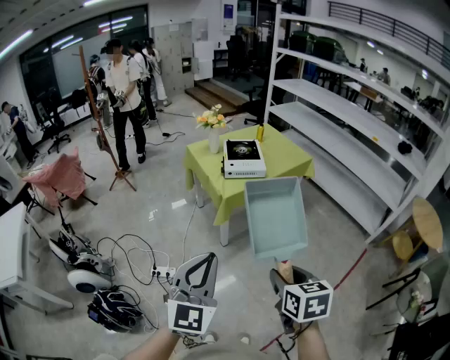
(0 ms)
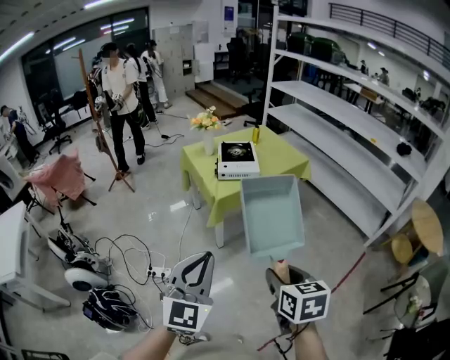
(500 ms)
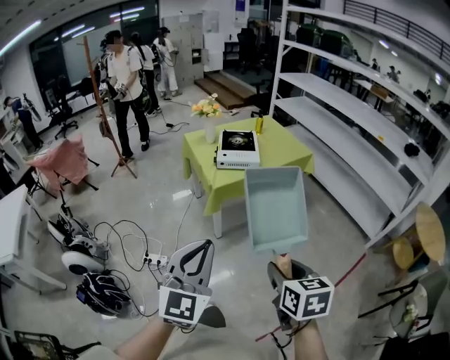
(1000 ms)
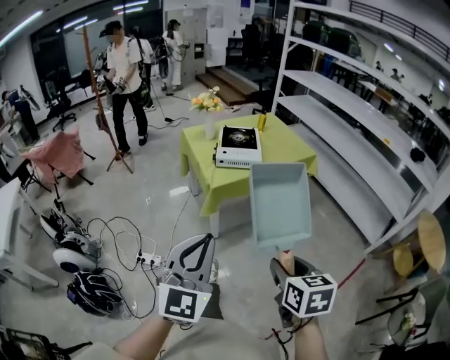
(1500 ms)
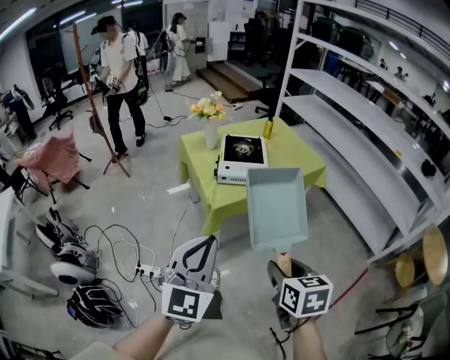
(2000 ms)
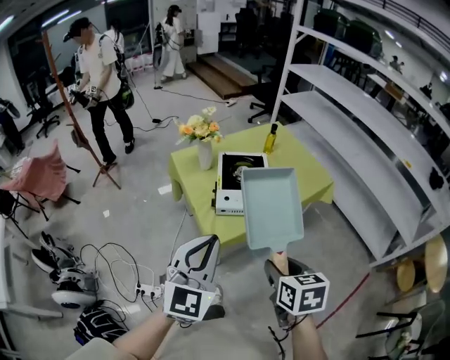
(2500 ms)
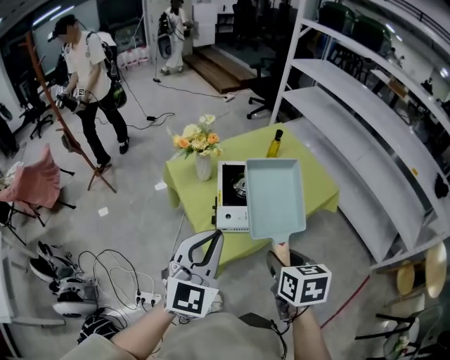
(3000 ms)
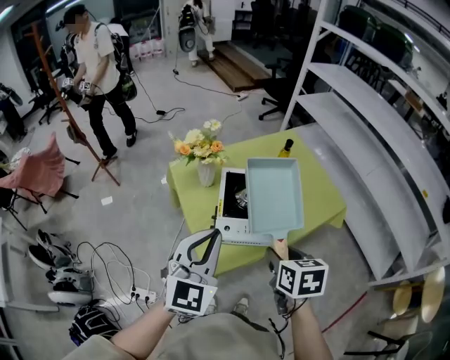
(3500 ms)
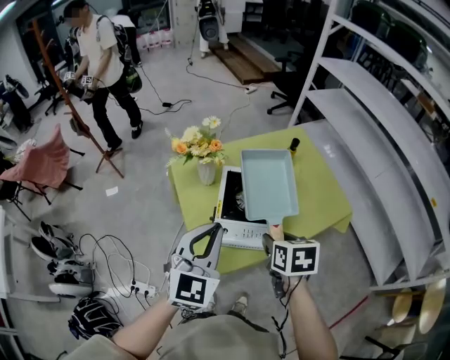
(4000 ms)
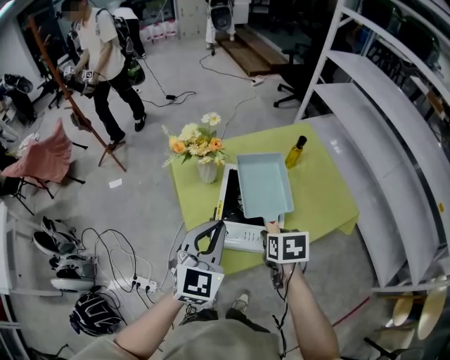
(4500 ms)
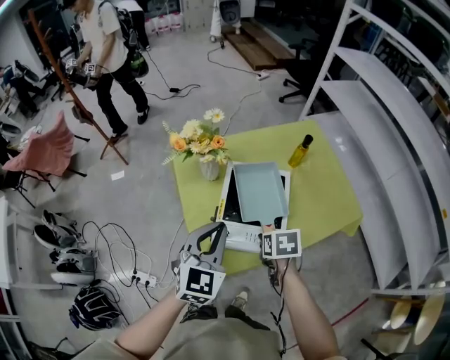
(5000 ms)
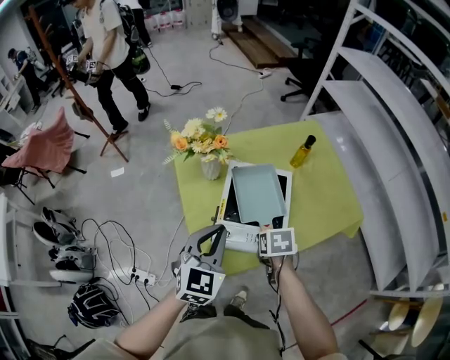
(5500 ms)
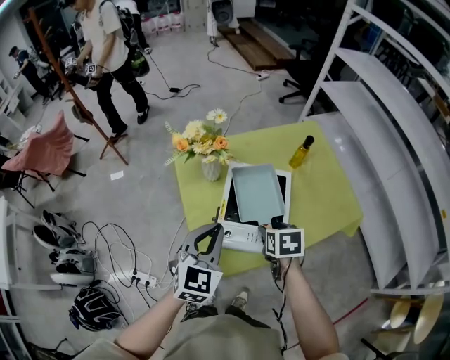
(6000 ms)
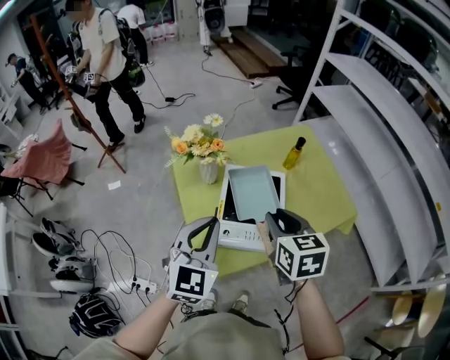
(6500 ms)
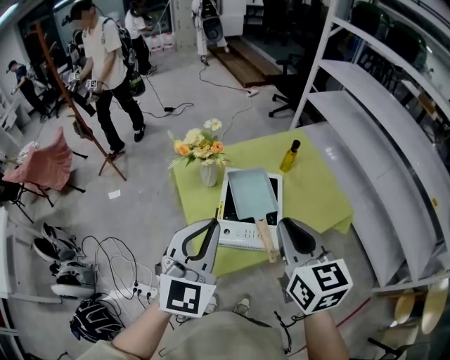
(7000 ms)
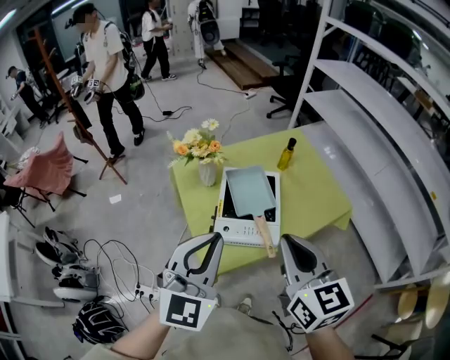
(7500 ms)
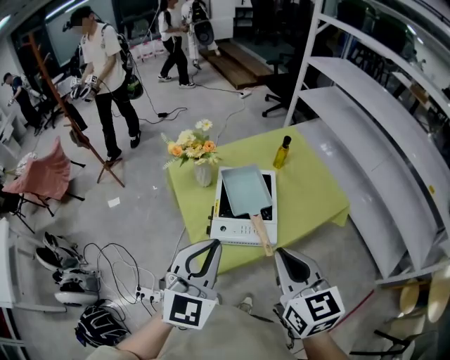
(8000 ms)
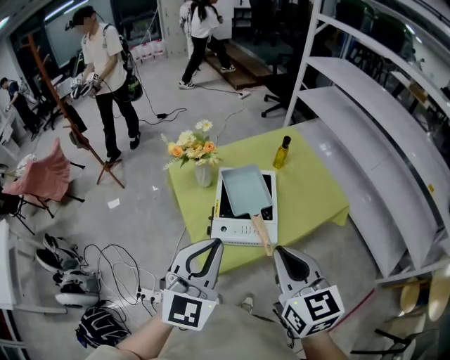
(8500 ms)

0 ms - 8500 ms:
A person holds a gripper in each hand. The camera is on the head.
0 ms - 2000 ms: Both grippers travel together forward, roughly 20 cm.
2000 ms - 4000 ms: The pair of grippers is taken forward, some 50 cm.
4000 ms - 6500 ms: The left gripper moves about 10 cm downward and comes back. Meanwhile the right gripper travels forward by some 5 cm, goes downward and returns, some 15 cm each way, rotates some 20 degrees, and opens, then closes again.
6500 ms - 8500 ms: The two grippers go roughly 15 cm backward and upward. The right gripper closes its fingers.

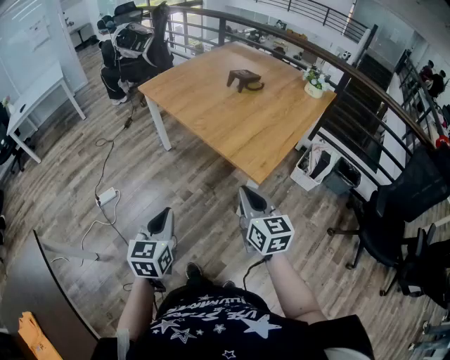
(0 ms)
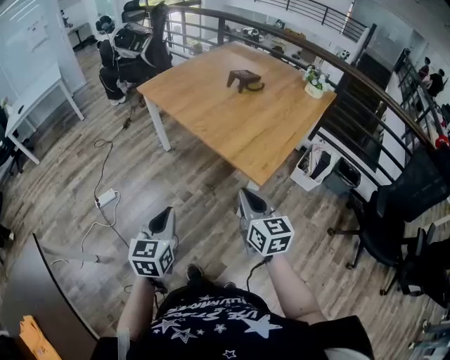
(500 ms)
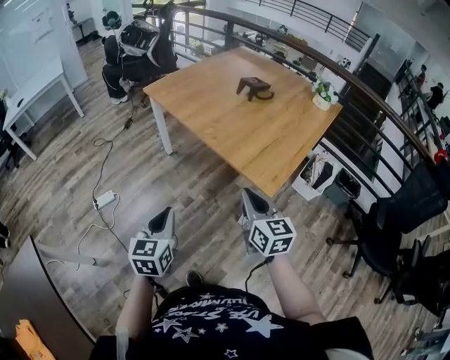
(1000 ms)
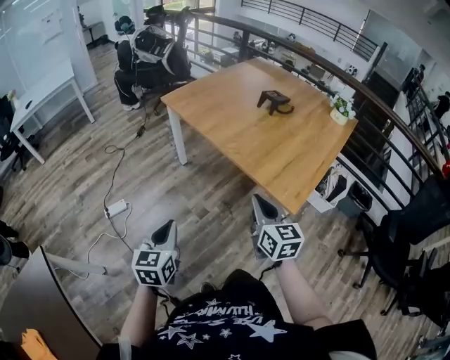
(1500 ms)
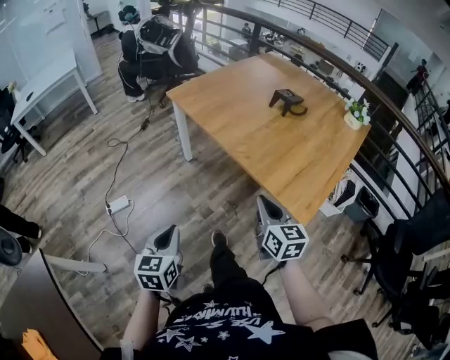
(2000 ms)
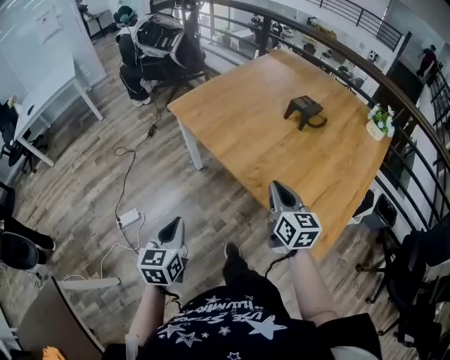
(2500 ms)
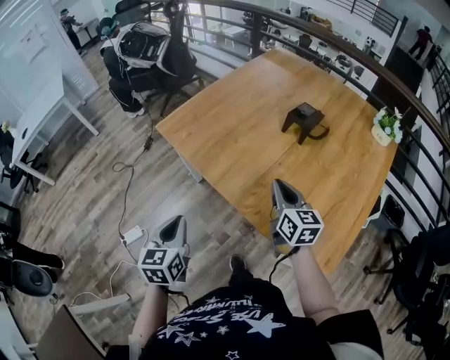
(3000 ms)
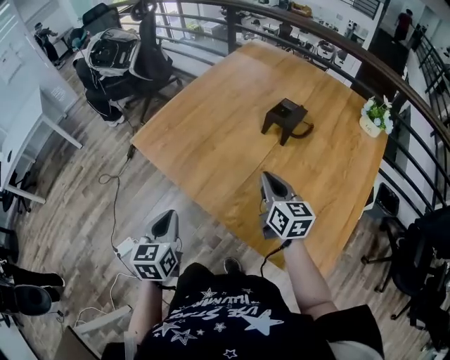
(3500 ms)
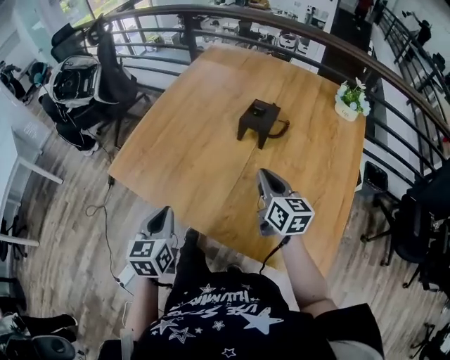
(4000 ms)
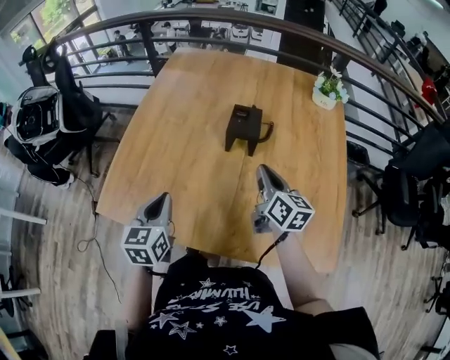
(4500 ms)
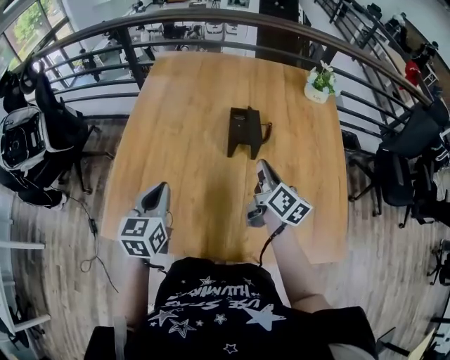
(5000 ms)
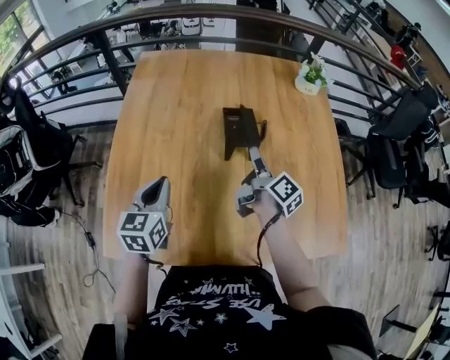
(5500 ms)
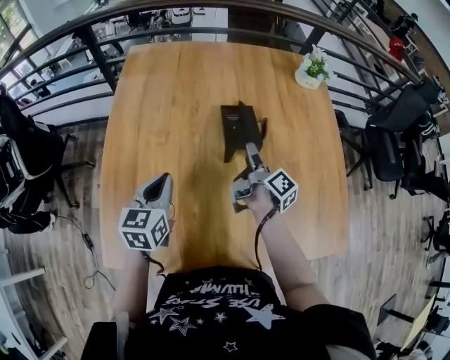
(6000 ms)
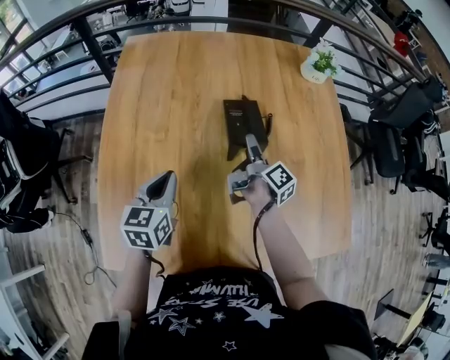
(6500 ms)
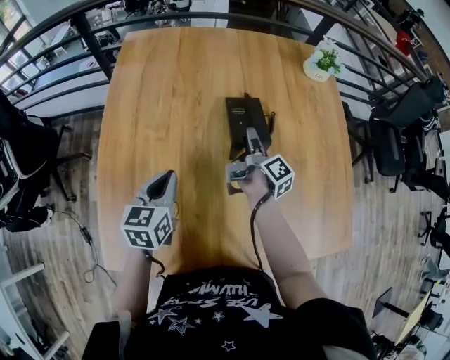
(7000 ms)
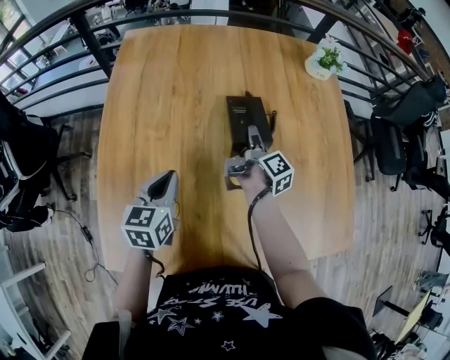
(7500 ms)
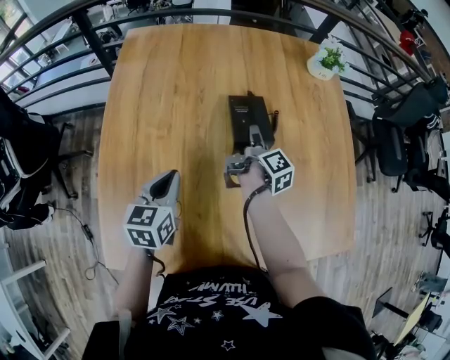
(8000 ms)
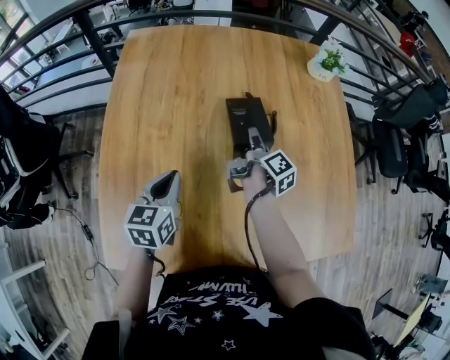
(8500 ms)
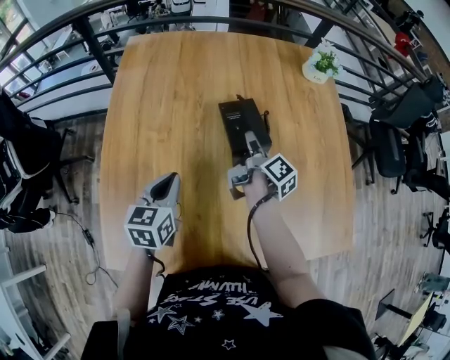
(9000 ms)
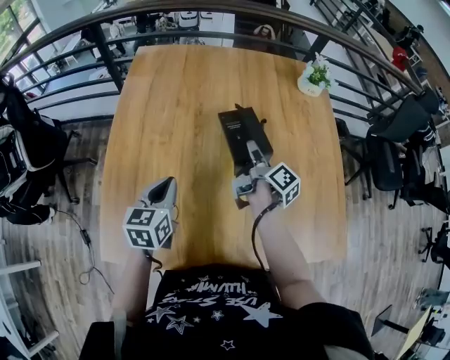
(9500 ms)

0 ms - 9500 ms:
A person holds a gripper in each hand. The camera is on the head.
0 ms - 2000 ms: The left gripper heads to the left and forward, covering approximately 20 cm, while the right gripper goes about 20 cm forward and to the left.
2000 ms - 4000 ms: The two grippers travel together, forward, approximately 50 cm. The right gripper rotates approximately 20 degrees.
4000 ms - 5500 ms: The left gripper moves approximately 25 cm, and rotates approximately 30 degrees. Meanwhile the right gripper shifts by roughly 10 cm, changes its angle by about 60 degrees, and opens up.
5500 ms - 7500 ms: The left gripper shifts about 10 cm forward and downward, while the right gripper is displaced downward and forward by approximately 15 cm, and rotates roughly 20 degrees.
7500 ms - 9500 ms: The left gripper shifts by roughly 5 cm. Meanwhile the right gripper travels upward by approximately 5 cm.

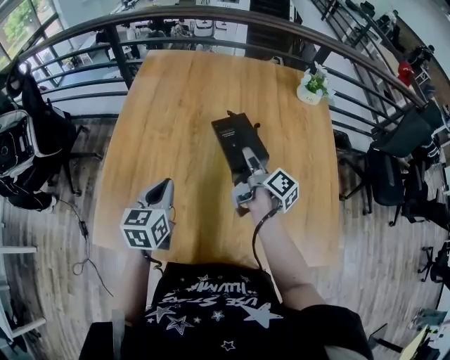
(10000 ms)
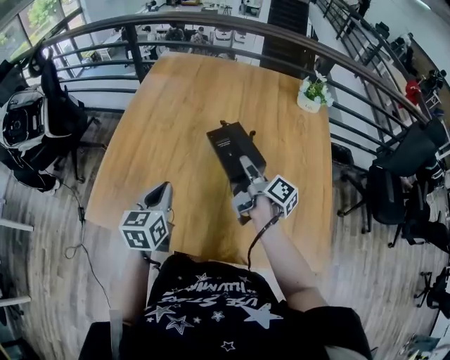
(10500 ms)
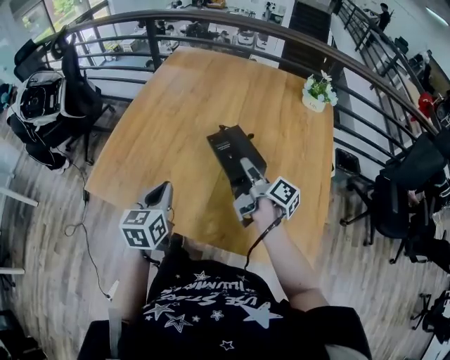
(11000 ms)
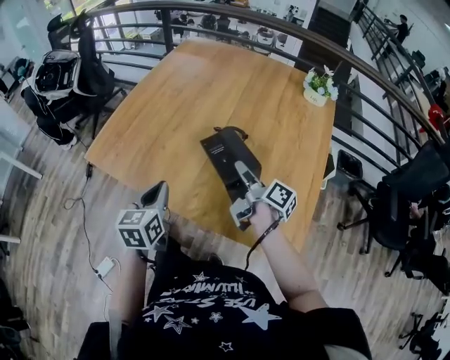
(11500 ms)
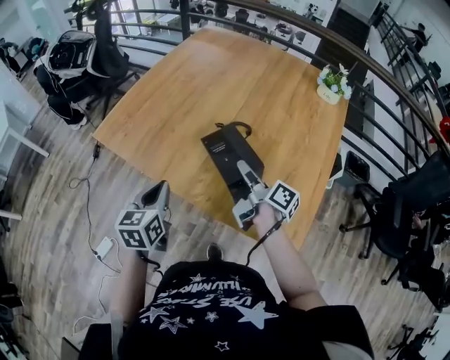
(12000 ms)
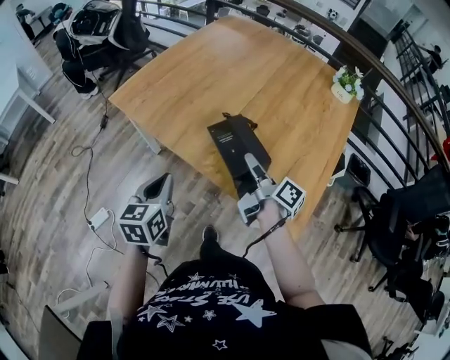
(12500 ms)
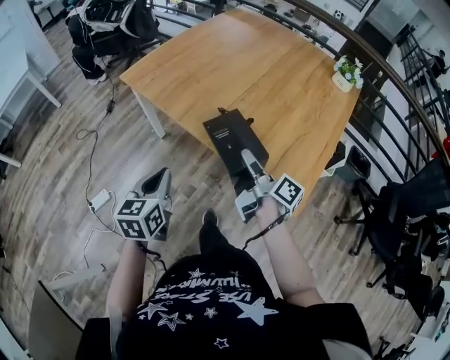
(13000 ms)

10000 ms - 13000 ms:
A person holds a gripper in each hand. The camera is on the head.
10000 ms - 11500 ms: The right gripper moves about 20 cm, and rotates some 30 degrees. Meanwhile the left gripper moves approximately 25 cm, and turns by some 20 degrees.
11500 ms - 13000 ms: Both grippers travel together backward, roughly 20 cm.

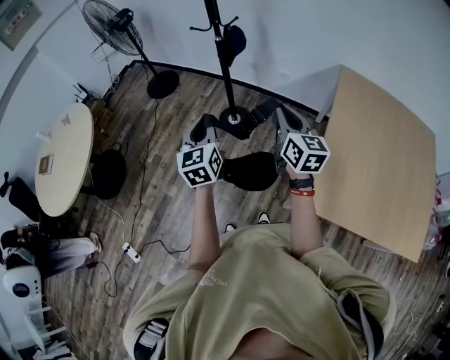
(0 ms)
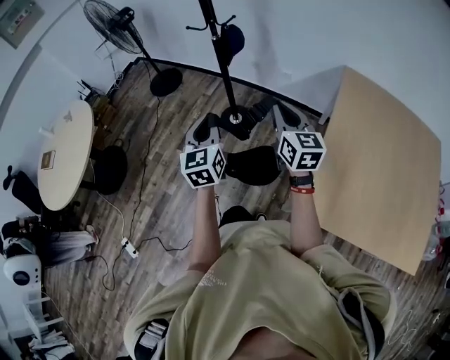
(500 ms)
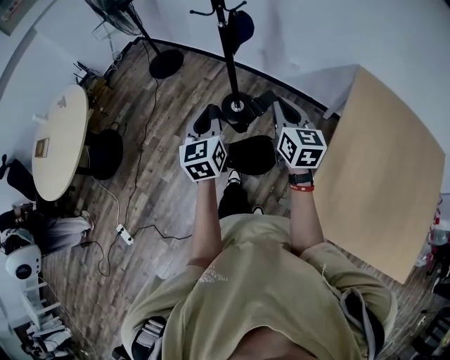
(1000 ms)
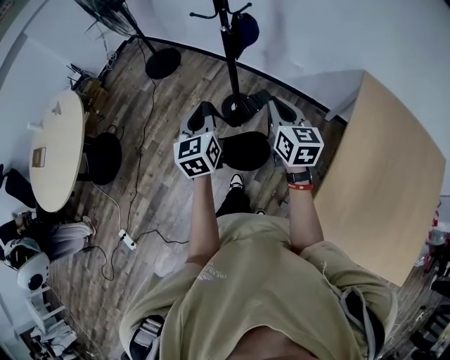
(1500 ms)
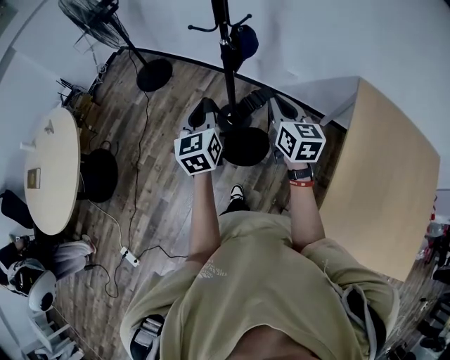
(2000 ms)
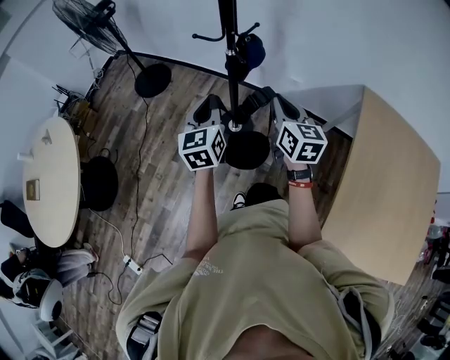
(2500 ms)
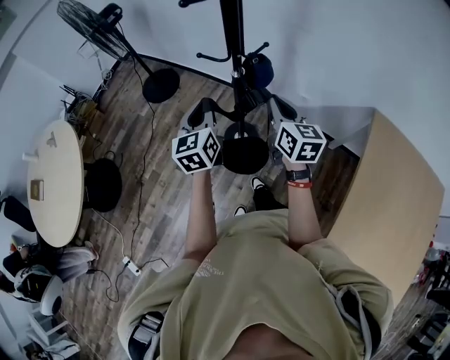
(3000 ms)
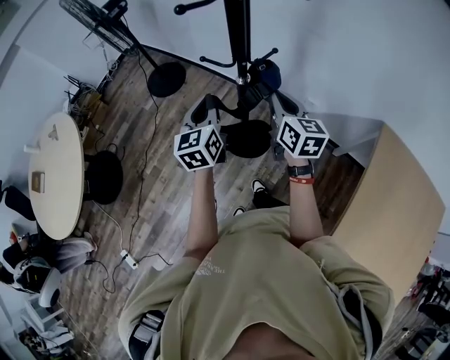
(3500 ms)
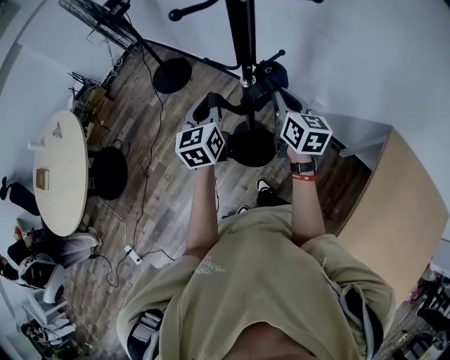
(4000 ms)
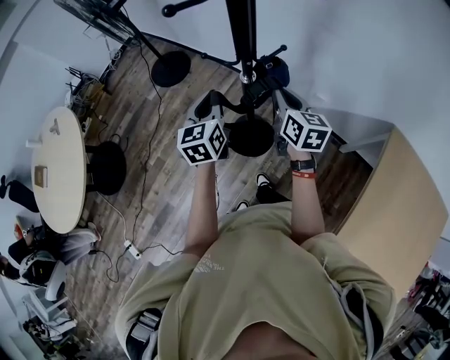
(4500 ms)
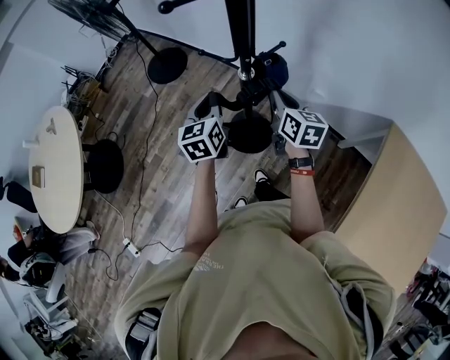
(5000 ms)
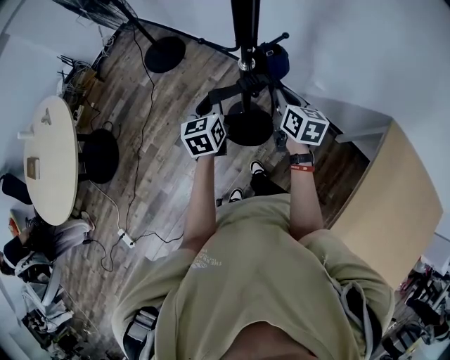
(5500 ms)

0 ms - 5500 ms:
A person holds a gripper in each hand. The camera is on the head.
0 ms - 2000 ms: The two grippers go roughly 30 cm forward.
2000 ms - 3500 ms: The grippers both shift forward by some 30 cm.
3500 ms - 5500 ms: Both grippers travel together downward, about 10 cm.
